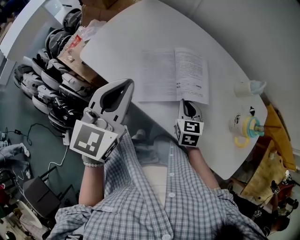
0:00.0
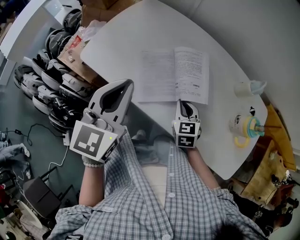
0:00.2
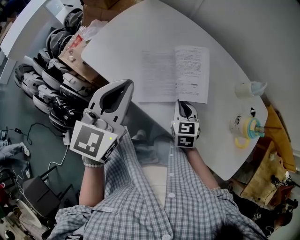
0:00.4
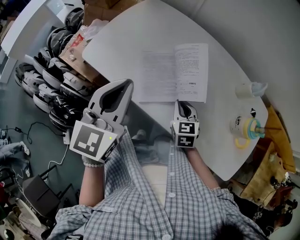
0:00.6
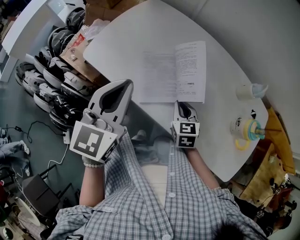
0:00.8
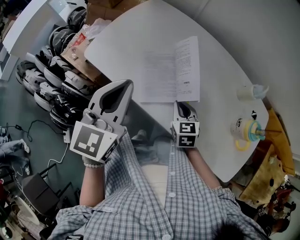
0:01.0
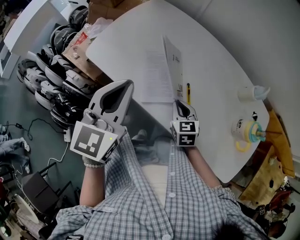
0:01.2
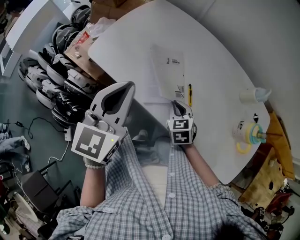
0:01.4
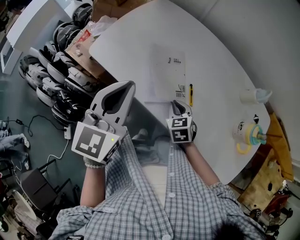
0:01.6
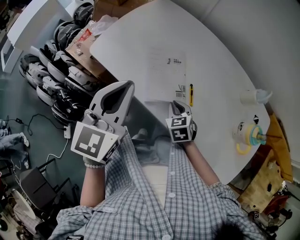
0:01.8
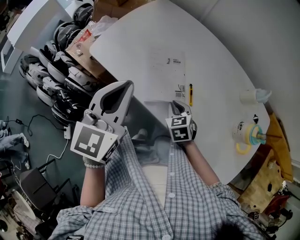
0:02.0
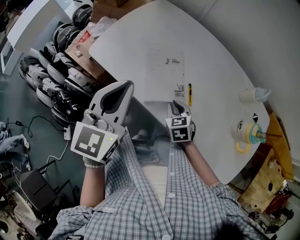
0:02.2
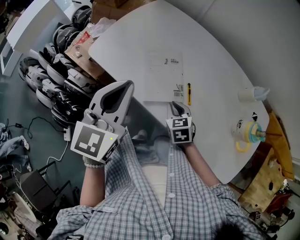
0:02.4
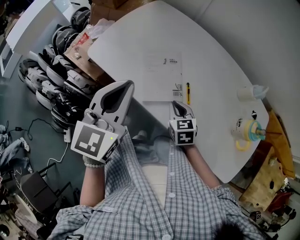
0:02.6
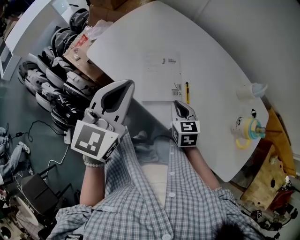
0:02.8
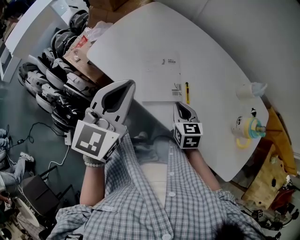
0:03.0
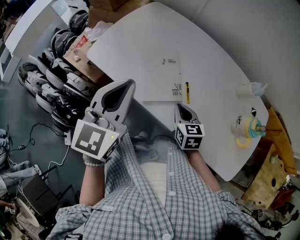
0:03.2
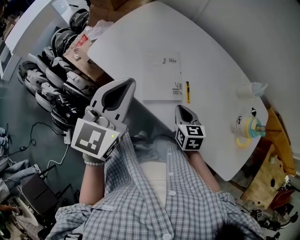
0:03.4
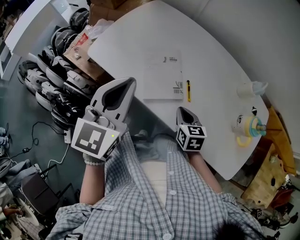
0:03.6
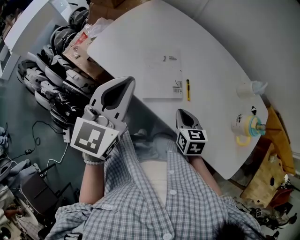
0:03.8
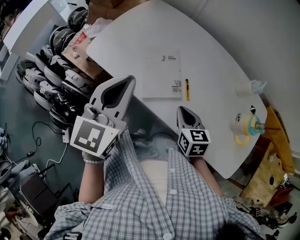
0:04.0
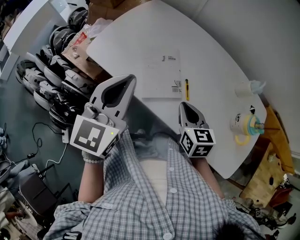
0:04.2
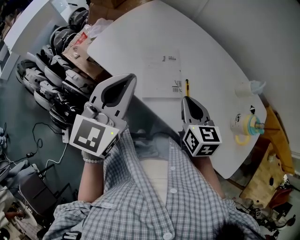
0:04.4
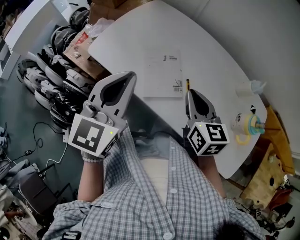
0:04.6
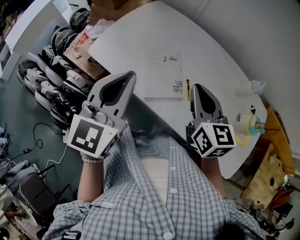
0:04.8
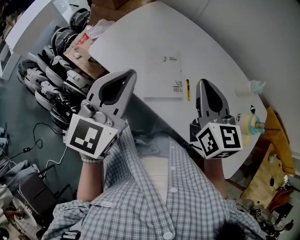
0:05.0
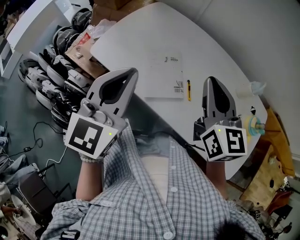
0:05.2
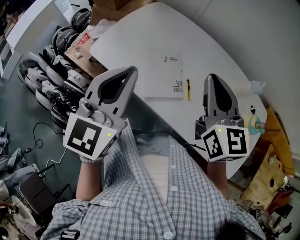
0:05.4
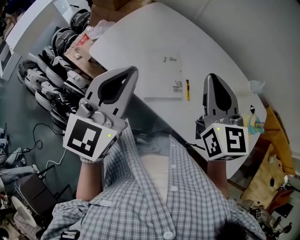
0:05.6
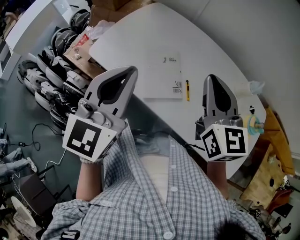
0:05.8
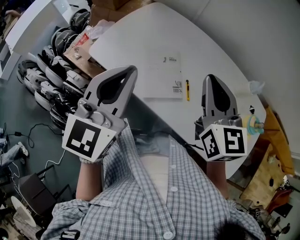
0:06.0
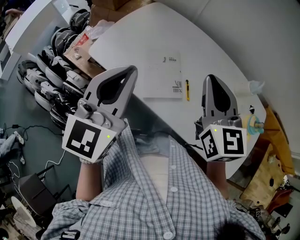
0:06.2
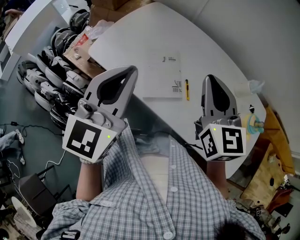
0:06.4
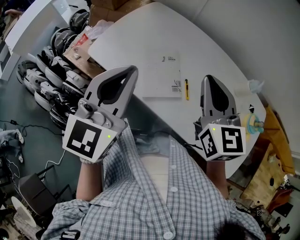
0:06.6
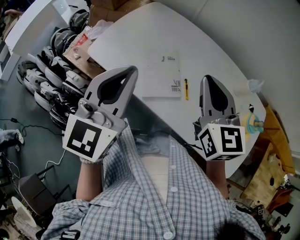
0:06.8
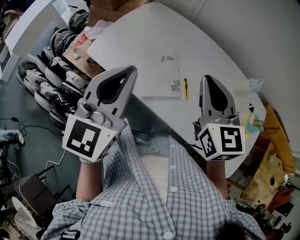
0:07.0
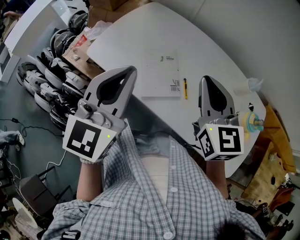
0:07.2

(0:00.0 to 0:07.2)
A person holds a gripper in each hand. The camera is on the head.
0:00.0 - 0:01.4: The right gripper moves to the left, about 5 cm.
0:01.4 - 0:02.8: The grippers stay close to where they were, moving slightly.
0:02.8 - 0:04.4: The right gripper is displaced upward by about 10 cm.
0:04.4 - 0:05.8: The right gripper is displaced upward by some 15 cm, and swivels about 20 degrees.
0:05.8 - 0:07.2: The grippers stay close to where they were, moving slightly.

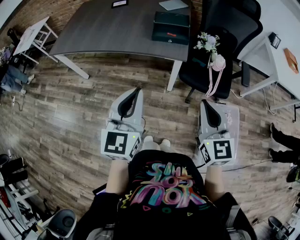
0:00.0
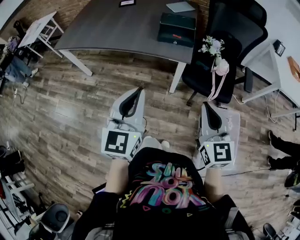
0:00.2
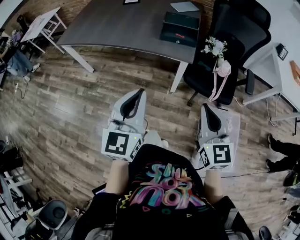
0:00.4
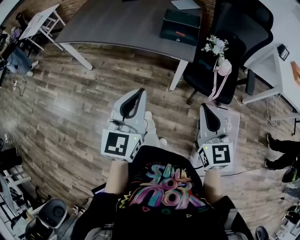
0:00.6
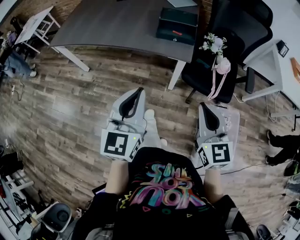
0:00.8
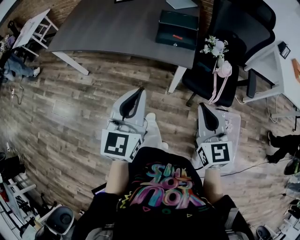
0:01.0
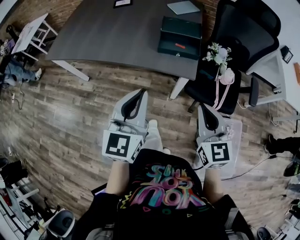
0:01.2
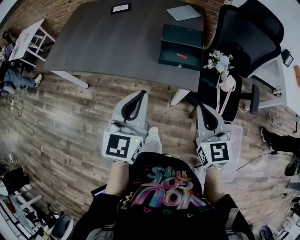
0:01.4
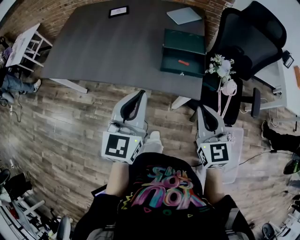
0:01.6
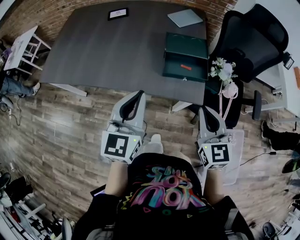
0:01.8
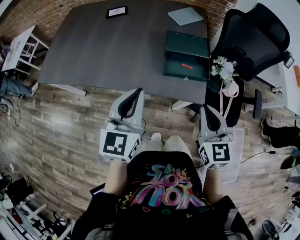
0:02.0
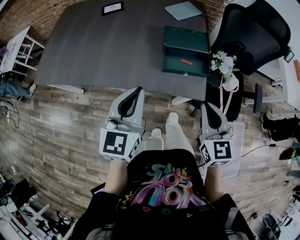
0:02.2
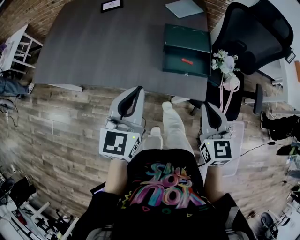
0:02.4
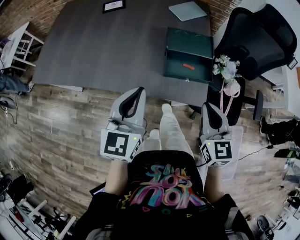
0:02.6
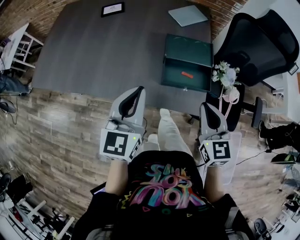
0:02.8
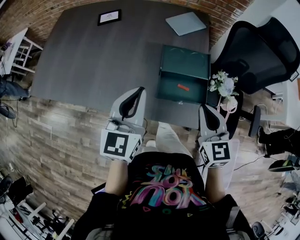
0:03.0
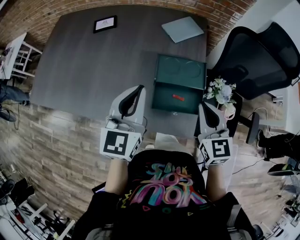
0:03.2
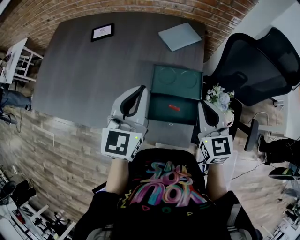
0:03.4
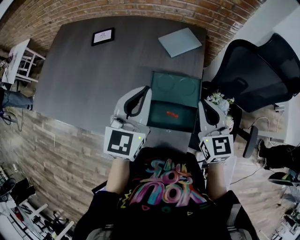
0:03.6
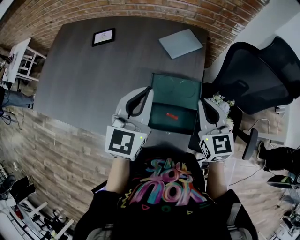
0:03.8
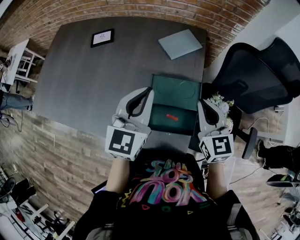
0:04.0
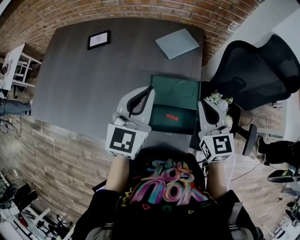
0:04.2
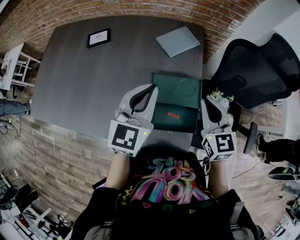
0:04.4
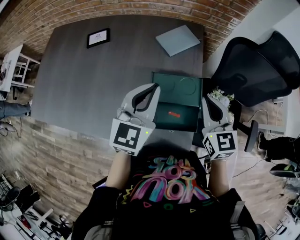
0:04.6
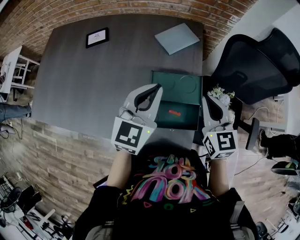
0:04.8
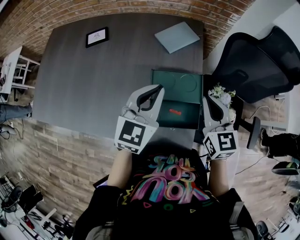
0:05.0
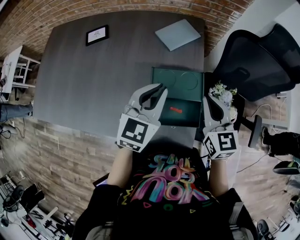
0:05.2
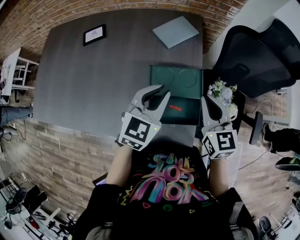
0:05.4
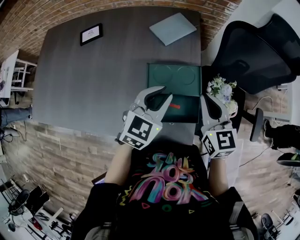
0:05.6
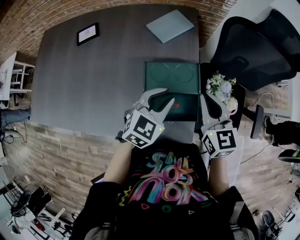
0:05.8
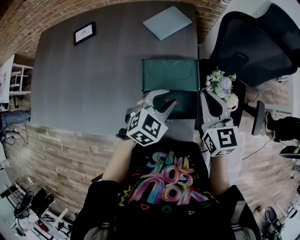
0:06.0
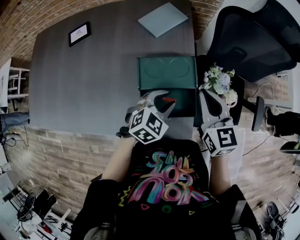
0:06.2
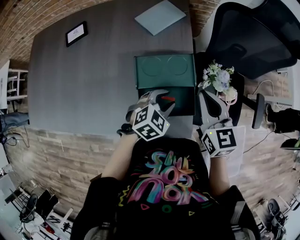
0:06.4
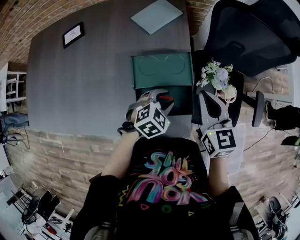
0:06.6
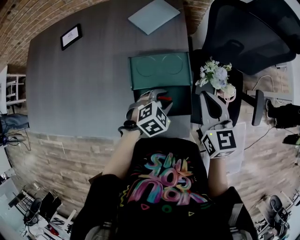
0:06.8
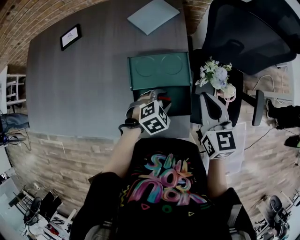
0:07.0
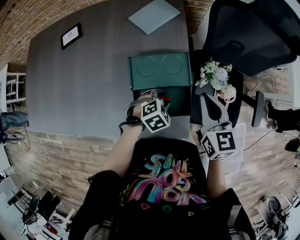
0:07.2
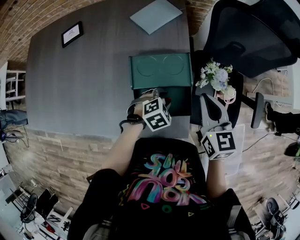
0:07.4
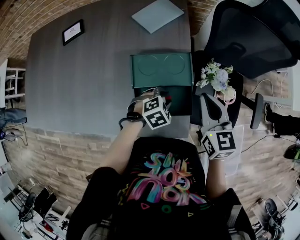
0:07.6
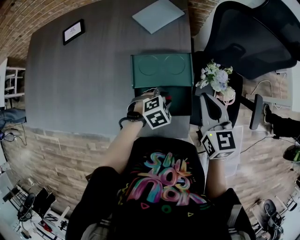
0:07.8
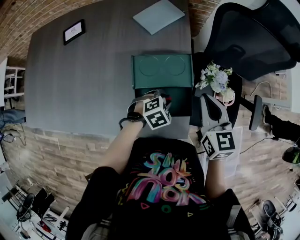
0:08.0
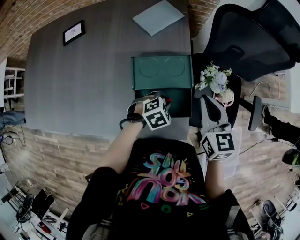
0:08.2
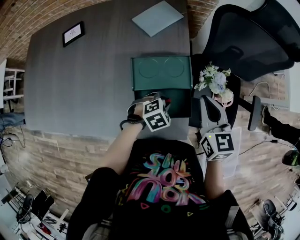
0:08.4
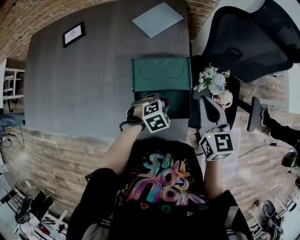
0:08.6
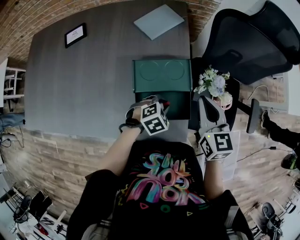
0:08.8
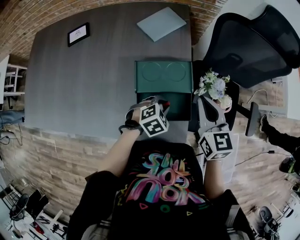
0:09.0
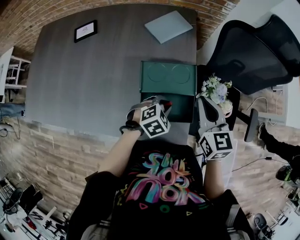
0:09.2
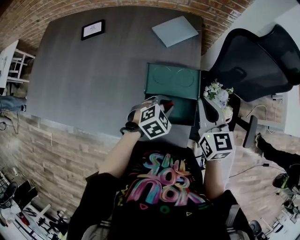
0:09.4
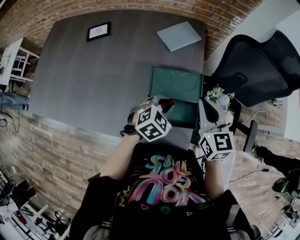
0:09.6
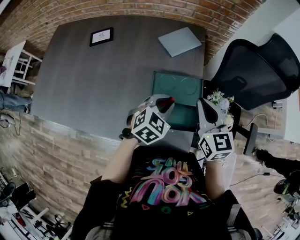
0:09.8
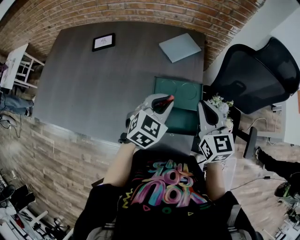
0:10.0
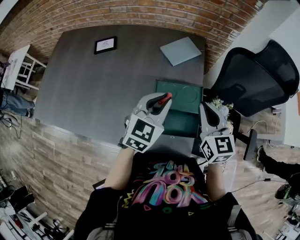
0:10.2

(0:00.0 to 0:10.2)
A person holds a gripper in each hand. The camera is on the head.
0:00.0 - 0:01.4: The two grippers go approximately 20 cm forward.
0:01.4 - 0:03.0: Both grippers move forward, approximately 25 cm.
0:03.0 - 0:04.4: The left gripper travels forward and to the right by roughly 15 cm. The right gripper is displaced forward by some 15 cm.
0:04.4 - 0:05.8: The left gripper travels downward and to the right by some 15 cm, and turns by approximately 30 degrees.
0:05.8 - 0:07.2: The right gripper moves to the right, about 5 cm; the left gripper travels downward by some 20 cm, and tilts its fingers approximately 30 degrees downward.
0:07.2 - 0:08.8: The left gripper closes up.
0:08.8 - 0:10.2: The left gripper goes about 25 cm upward and to the left, and tips its fingers upward by some 40 degrees. Meanwhile the right gripper is displaced to the left and upward by about 10 cm.

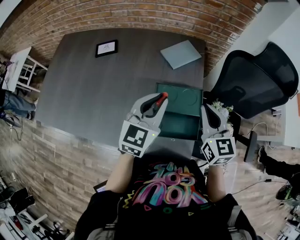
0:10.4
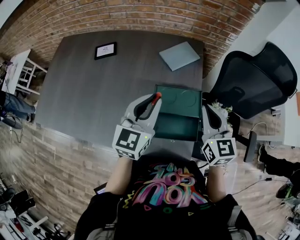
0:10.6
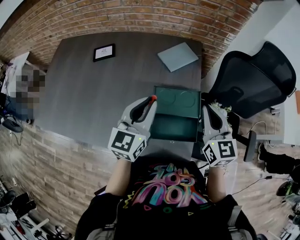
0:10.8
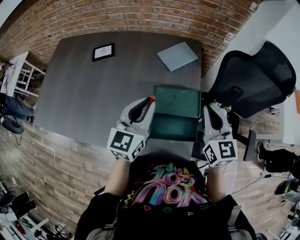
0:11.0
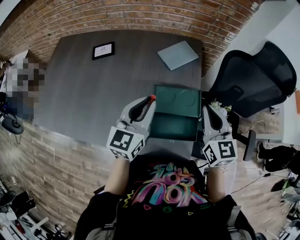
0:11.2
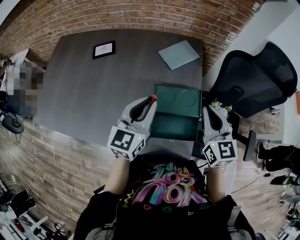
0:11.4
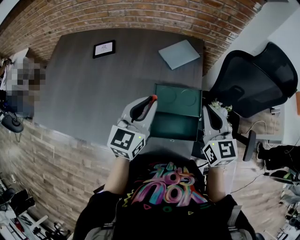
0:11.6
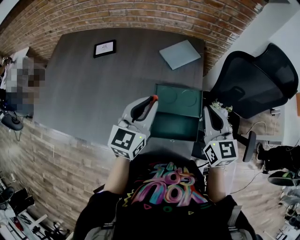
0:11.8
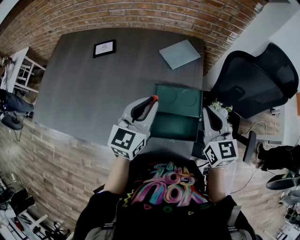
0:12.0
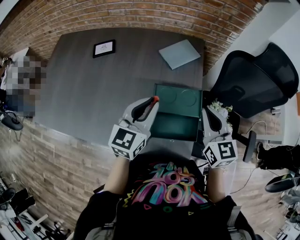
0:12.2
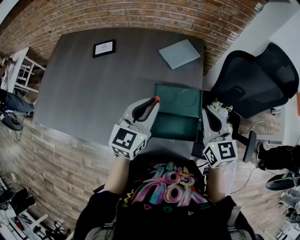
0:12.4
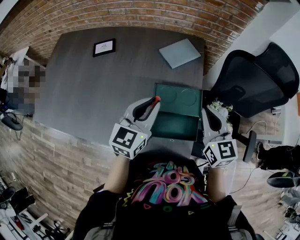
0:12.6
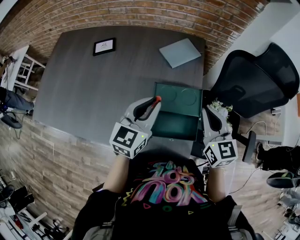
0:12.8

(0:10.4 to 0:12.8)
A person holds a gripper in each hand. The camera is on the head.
0:10.4 - 0:12.8: The grippers stay close to where they were, moving slightly.

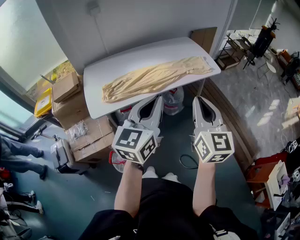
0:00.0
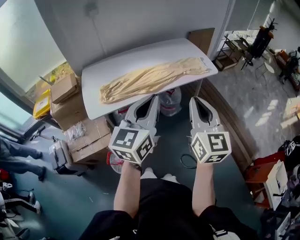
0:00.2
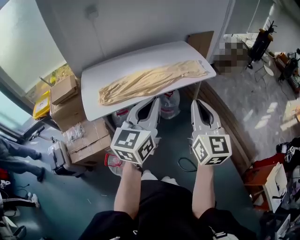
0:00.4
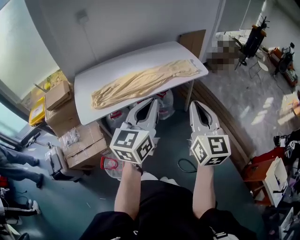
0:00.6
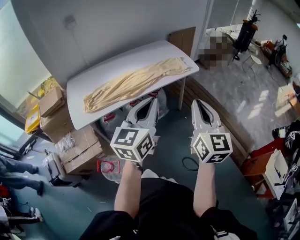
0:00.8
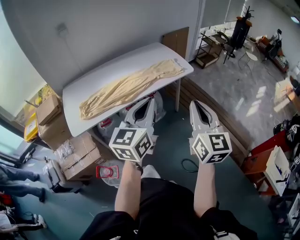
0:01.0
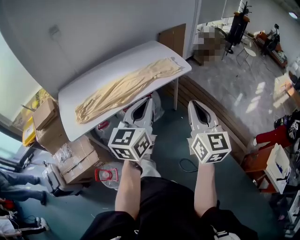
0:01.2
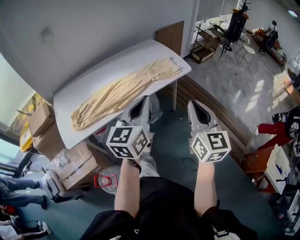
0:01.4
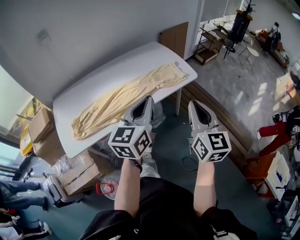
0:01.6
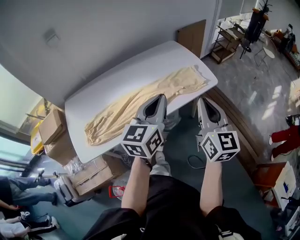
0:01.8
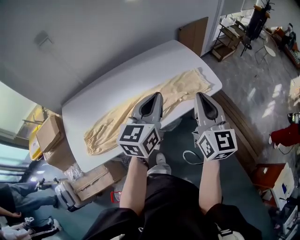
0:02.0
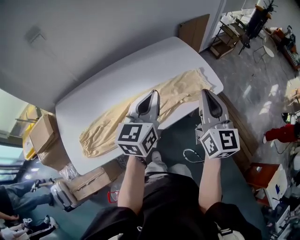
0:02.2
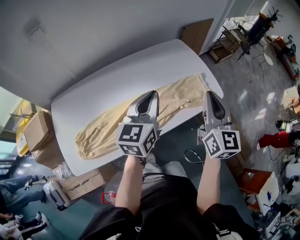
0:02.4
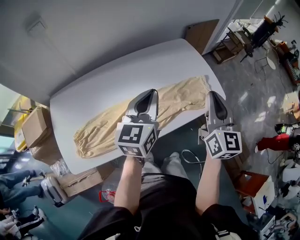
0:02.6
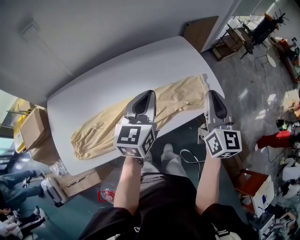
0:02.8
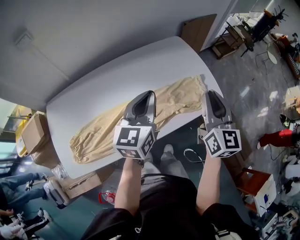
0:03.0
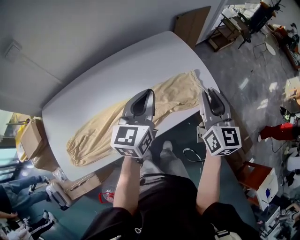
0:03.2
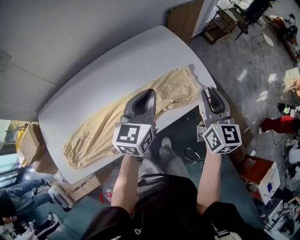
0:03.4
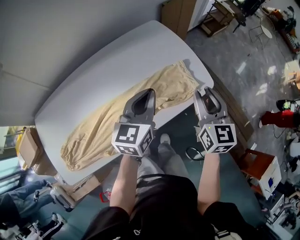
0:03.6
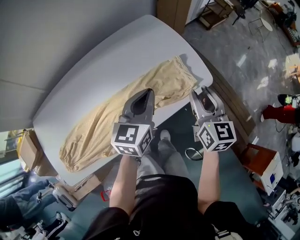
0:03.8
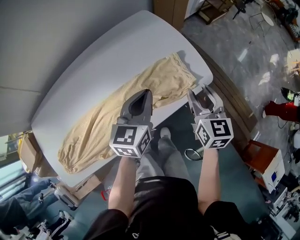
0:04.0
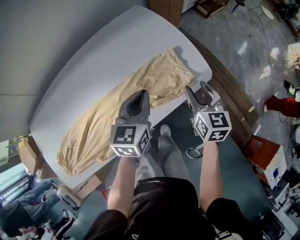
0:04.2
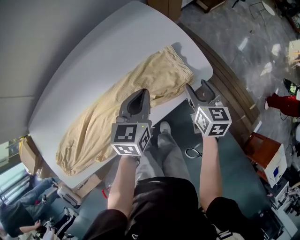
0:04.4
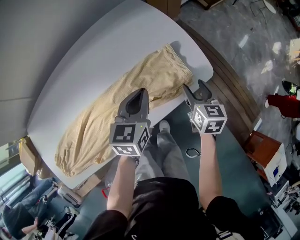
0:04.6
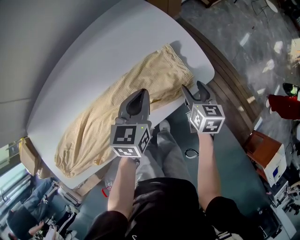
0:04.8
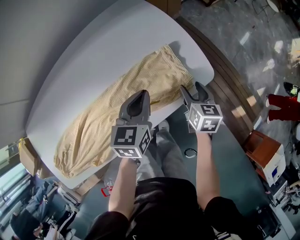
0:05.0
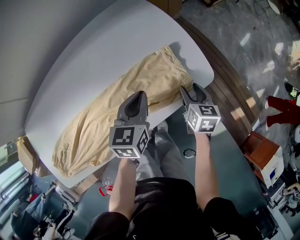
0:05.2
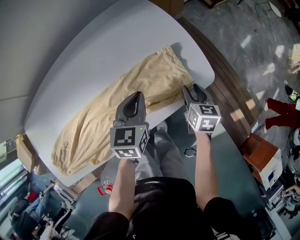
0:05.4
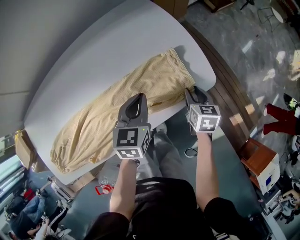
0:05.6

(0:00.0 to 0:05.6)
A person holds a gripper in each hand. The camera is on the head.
0:00.0 - 0:01.4: The left gripper shifts about 20 cm forward and to the right; the right gripper is displaced to the right and forward by about 20 cm.
0:01.4 - 0:02.8: The right gripper heads forward, covering approximately 35 cm. Meanwhile the left gripper shifts approximately 35 cm forward and to the left.
0:02.8 - 0:04.2: The left gripper travels to the right, downward and forward by approximately 25 cm, and turns by some 20 degrees; the right gripper moves downward, to the right and forward, some 30 cm, rotates approximately 30 degrees, and opens up.
0:04.2 - 0:05.6: The right gripper shifts roughly 15 cm downward; the left gripper travels downward by about 5 cm.
